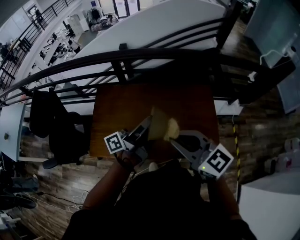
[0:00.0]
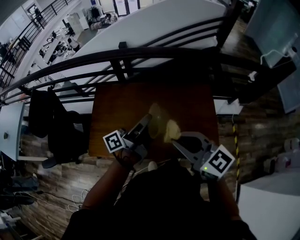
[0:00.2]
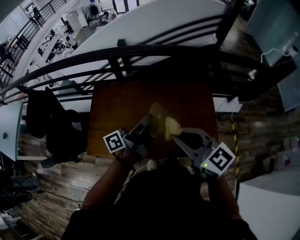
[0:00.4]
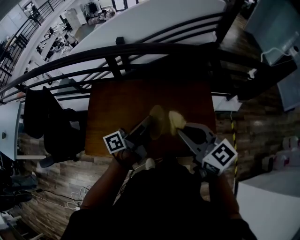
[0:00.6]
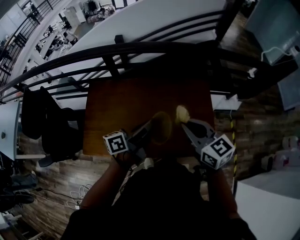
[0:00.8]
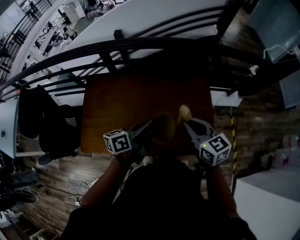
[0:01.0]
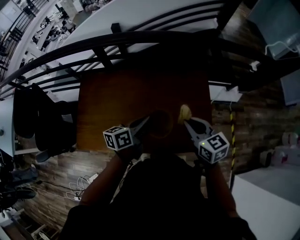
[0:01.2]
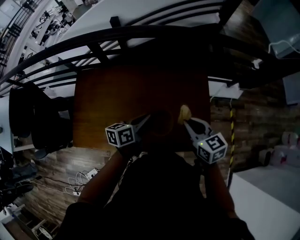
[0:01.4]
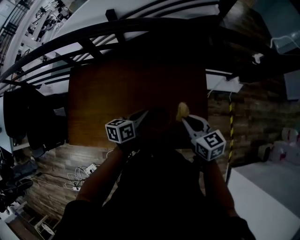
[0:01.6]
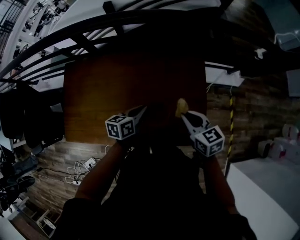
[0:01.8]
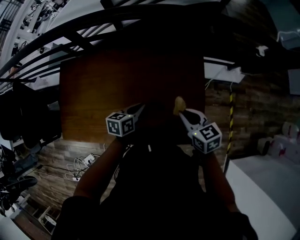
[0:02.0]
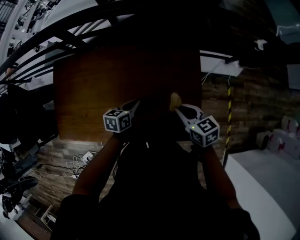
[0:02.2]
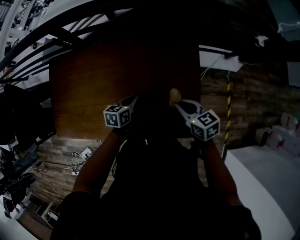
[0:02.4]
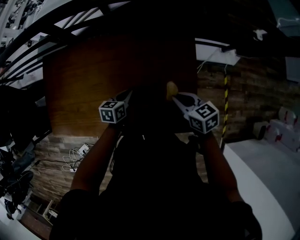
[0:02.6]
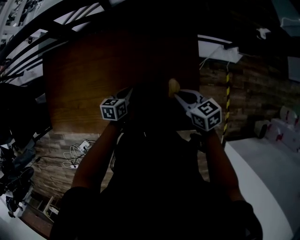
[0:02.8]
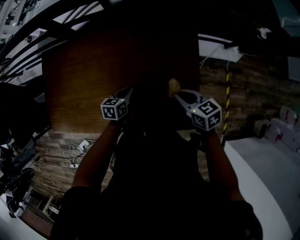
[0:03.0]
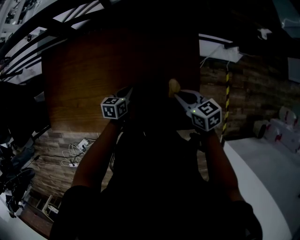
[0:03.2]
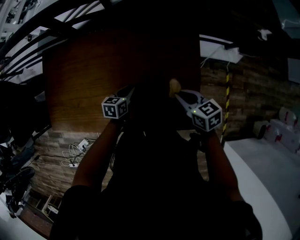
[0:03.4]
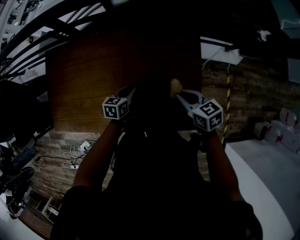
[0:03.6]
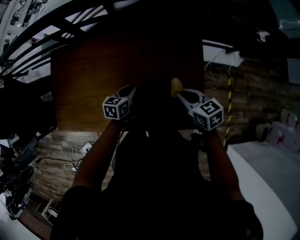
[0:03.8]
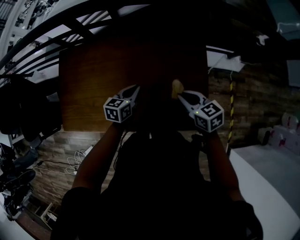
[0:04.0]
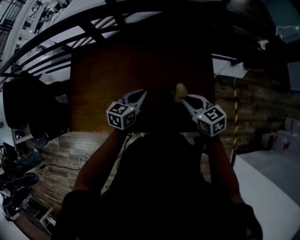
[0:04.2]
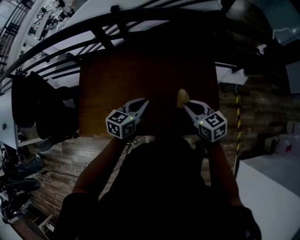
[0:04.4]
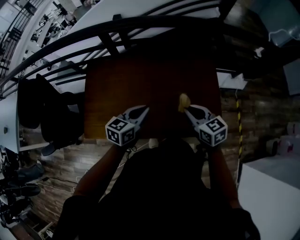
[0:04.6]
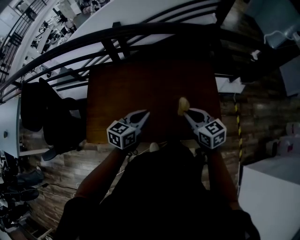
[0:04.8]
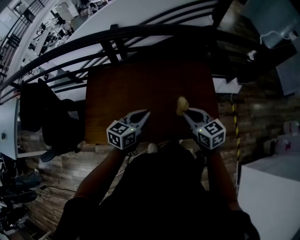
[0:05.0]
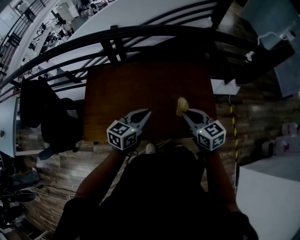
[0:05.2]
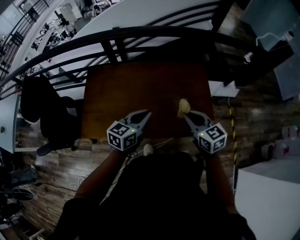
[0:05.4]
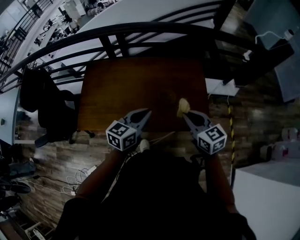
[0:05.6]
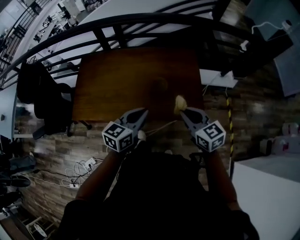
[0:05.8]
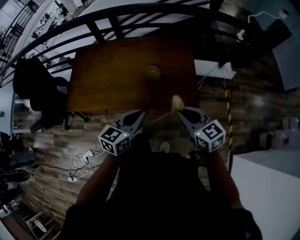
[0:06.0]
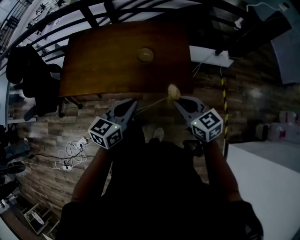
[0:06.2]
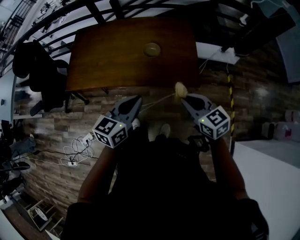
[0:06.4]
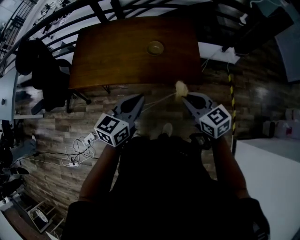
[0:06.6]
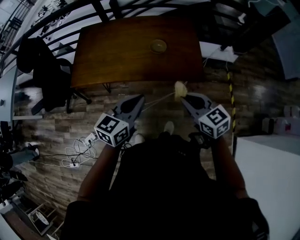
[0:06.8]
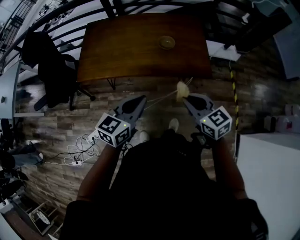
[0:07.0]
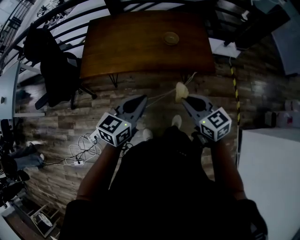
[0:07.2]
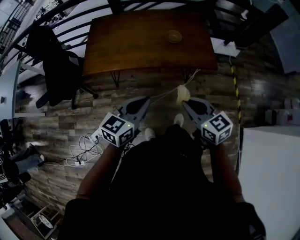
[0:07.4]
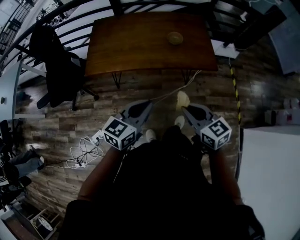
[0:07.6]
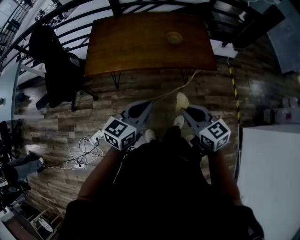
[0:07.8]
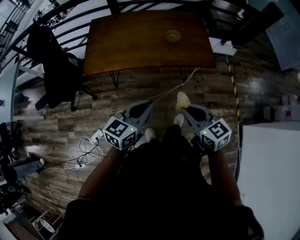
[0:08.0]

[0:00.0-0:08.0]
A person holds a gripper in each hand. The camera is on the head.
0:00.0 to 0:01.6: The right gripper moves to the right, downward and forward, approximately 35 cm, and swivels approximately 30 degrees, while the left gripper goes some 25 cm downward and to the right, and tips its fingers downward by roughly 50 degrees.
0:01.6 to 0:03.2: The right gripper is displaced downward and to the right by roughly 15 cm; the left gripper shifts about 20 cm downward.
0:03.2 to 0:04.8: The right gripper heads to the left, upward and backward, covering roughly 25 cm, and turns by roughly 20 degrees. Meanwhile the left gripper goes about 35 cm upward, to the left and backward, and turns by approximately 30 degrees.
0:04.8 to 0:06.4: Both grippers move backward and to the right, about 35 cm.
0:06.4 to 0:08.0: The grippers both shift to the left and backward by approximately 25 cm.

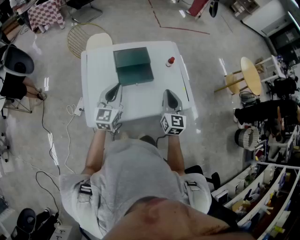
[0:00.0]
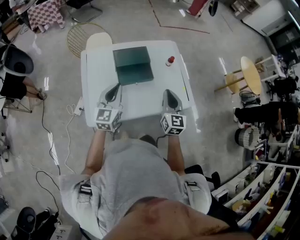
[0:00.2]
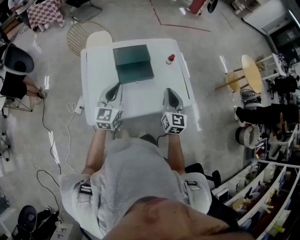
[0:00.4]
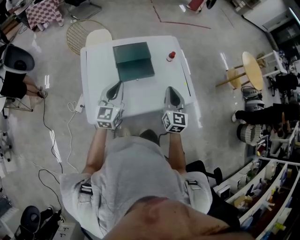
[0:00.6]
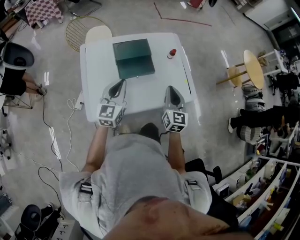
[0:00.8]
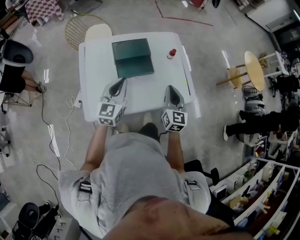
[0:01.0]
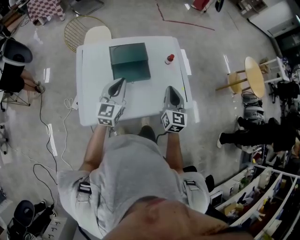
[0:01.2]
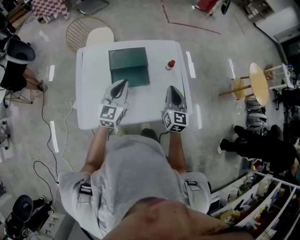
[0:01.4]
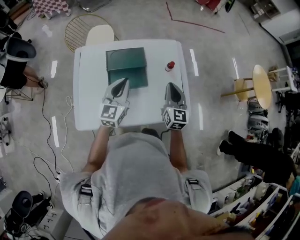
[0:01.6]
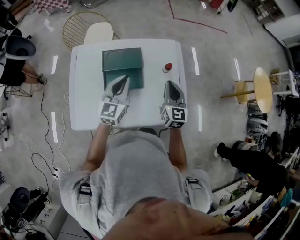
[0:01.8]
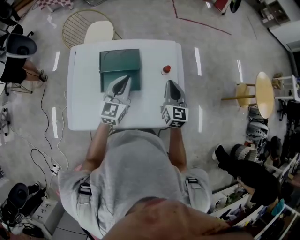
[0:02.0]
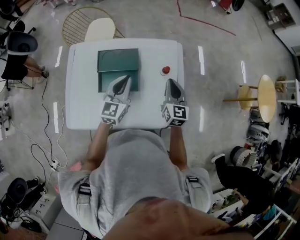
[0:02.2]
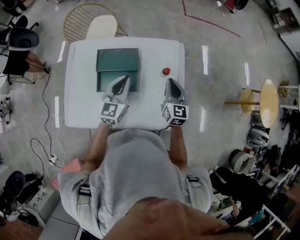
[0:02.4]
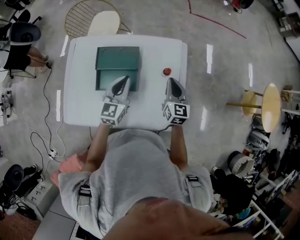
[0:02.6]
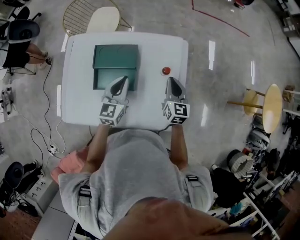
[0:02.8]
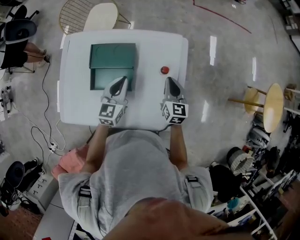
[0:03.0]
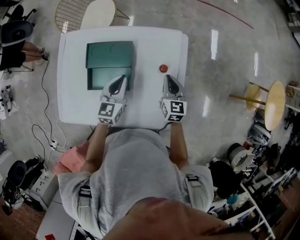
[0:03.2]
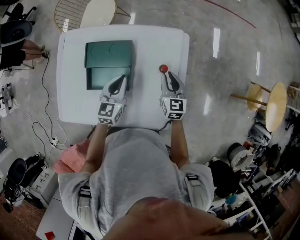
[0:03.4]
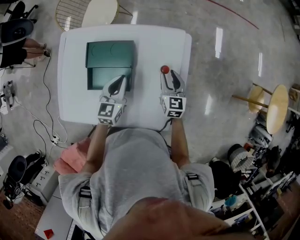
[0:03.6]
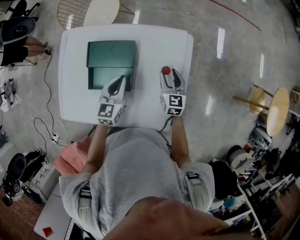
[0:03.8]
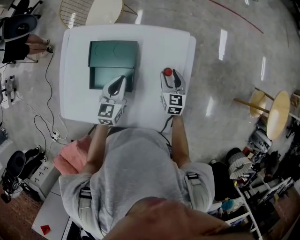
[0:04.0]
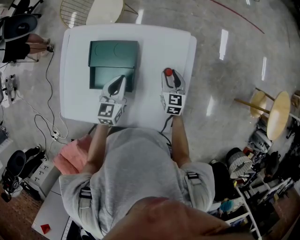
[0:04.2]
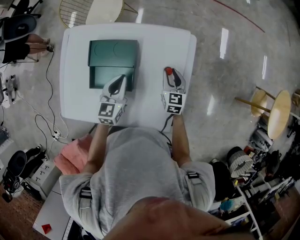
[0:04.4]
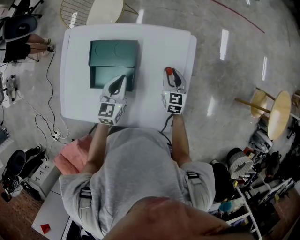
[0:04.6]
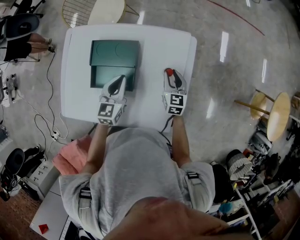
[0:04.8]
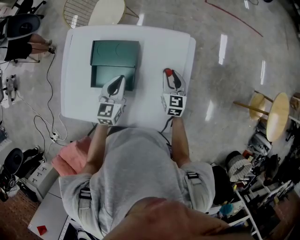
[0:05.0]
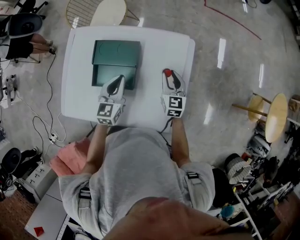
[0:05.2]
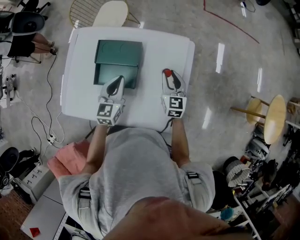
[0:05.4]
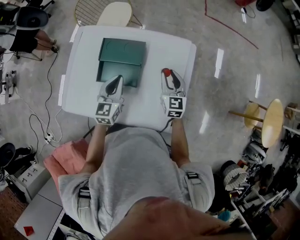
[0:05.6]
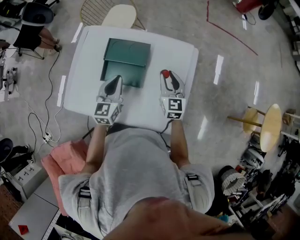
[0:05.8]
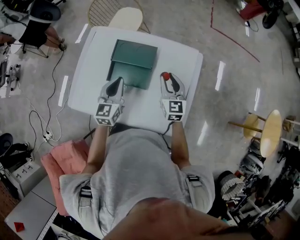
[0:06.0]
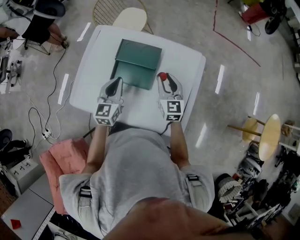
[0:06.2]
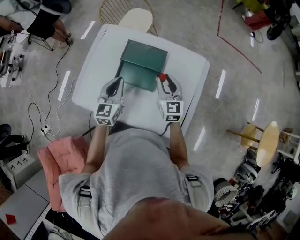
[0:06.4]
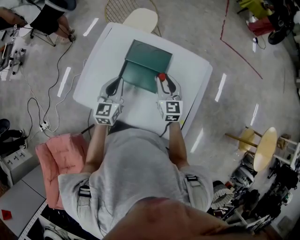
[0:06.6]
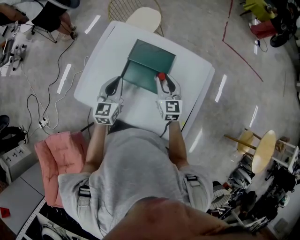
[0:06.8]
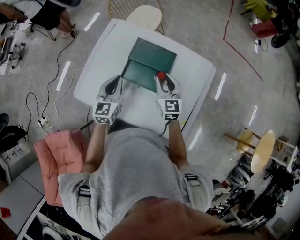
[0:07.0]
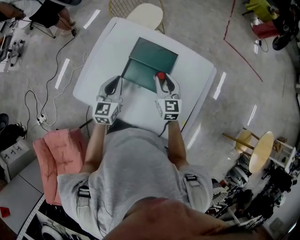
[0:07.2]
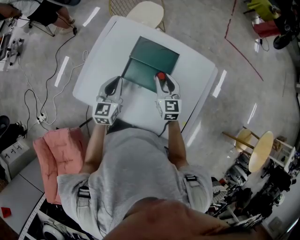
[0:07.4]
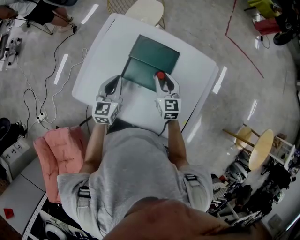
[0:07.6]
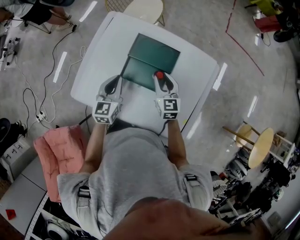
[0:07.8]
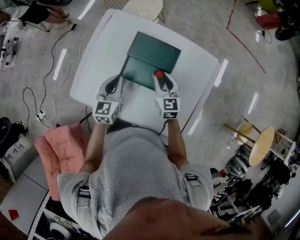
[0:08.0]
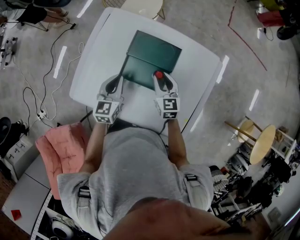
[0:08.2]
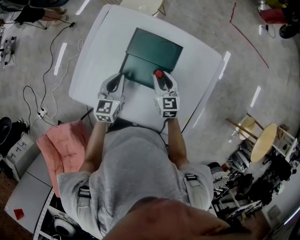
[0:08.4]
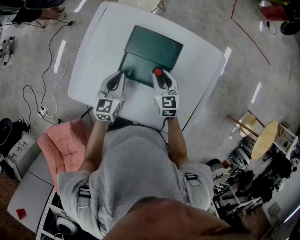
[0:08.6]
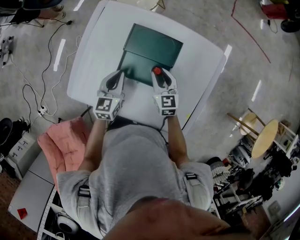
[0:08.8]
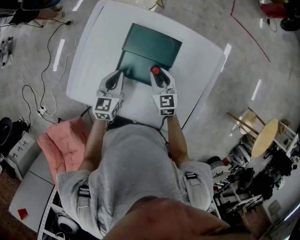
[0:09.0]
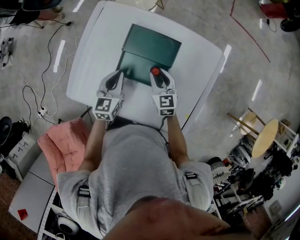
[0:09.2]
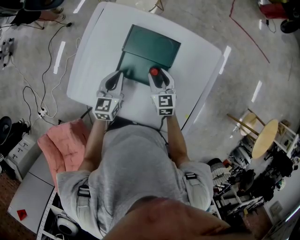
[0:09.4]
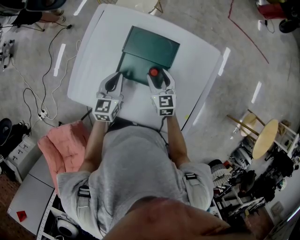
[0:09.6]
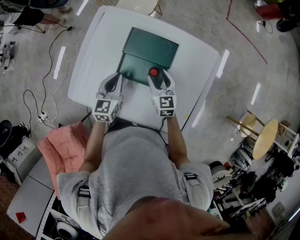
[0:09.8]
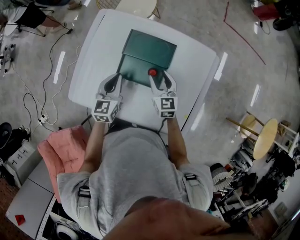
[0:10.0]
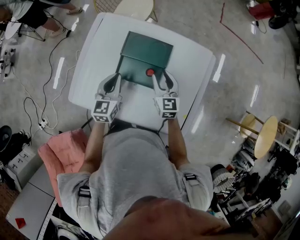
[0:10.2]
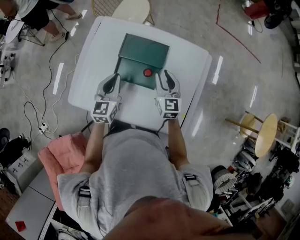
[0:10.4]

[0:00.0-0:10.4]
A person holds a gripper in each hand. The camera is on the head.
0:00.0 to 0:01.4: The two grippers go some 10 cm forward and to the right.
0:01.4 to 0:03.0: The left gripper heads forward, to the right and downward, covering approximately 25 cm. The right gripper heads forward, downward and to the right, covering approximately 25 cm, and rotates roughly 20 degrees.
0:03.0 to 0:04.4: The right gripper is displaced downward and forward by about 10 cm, and opens.
0:04.4 to 0:06.0: The left gripper shifts roughly 15 cm to the left, backward and upward. Meanwhile the right gripper moves upward, to the left and backward, approximately 20 cm.
0:06.0 to 0:07.4: Both grippers travel together to the left, some 10 cm.
0:07.4 to 0:09.0: The grippers both shift downward by some 10 cm.
0:09.0 to 0:10.4: Both grippers move upward, approximately 10 cm. The right gripper opens, then closes again.

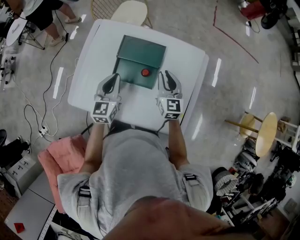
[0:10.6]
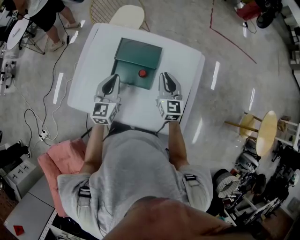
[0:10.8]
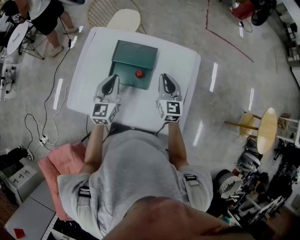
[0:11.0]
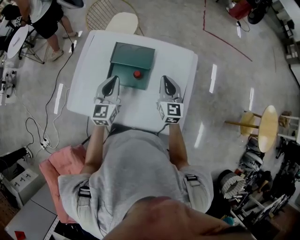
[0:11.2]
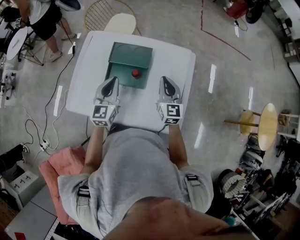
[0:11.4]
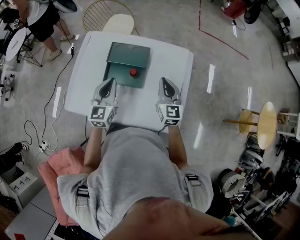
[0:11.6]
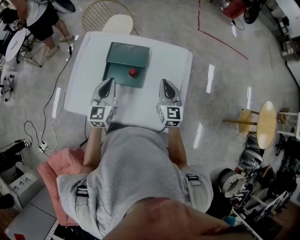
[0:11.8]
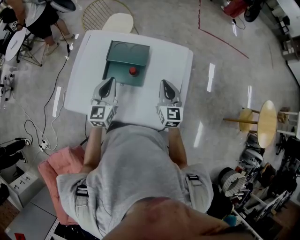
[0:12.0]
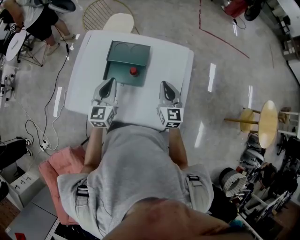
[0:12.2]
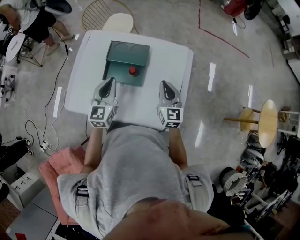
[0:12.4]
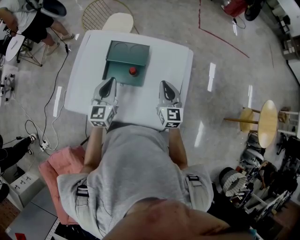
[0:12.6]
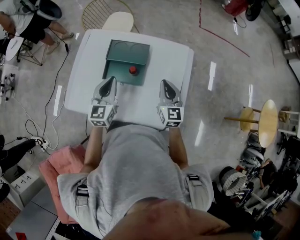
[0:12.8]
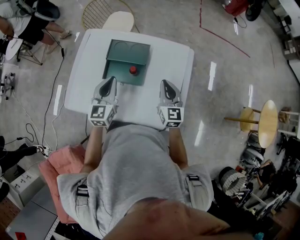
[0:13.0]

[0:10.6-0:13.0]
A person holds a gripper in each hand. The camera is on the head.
0:10.6 to 0:11.8: The left gripper shifts about 10 cm backward and to the right; the right gripper travels backward and to the right by roughly 10 cm.
0:11.8 to 0:13.0: The grippers make only small movements.

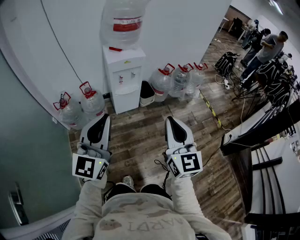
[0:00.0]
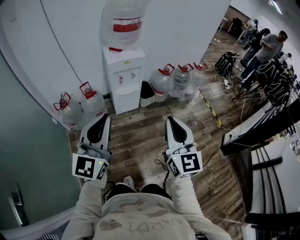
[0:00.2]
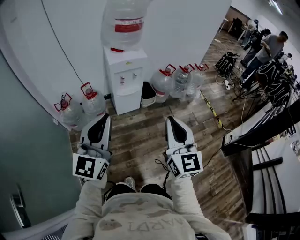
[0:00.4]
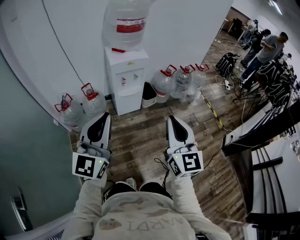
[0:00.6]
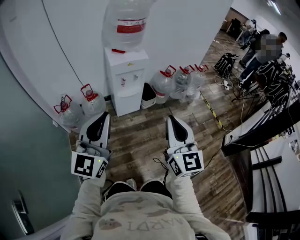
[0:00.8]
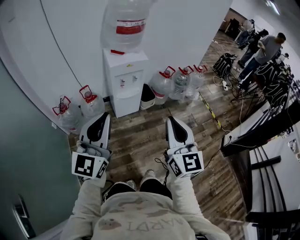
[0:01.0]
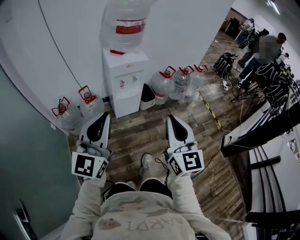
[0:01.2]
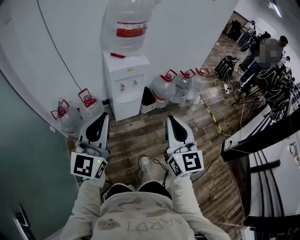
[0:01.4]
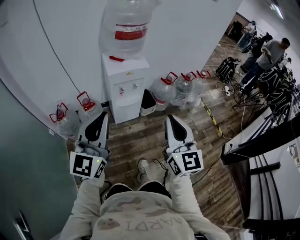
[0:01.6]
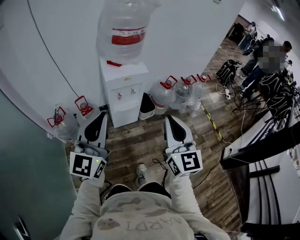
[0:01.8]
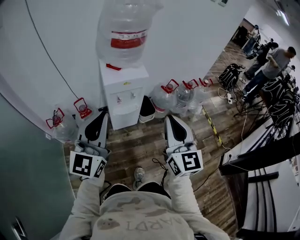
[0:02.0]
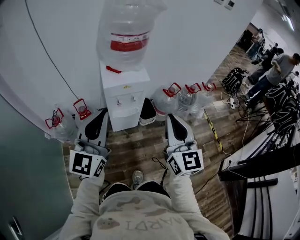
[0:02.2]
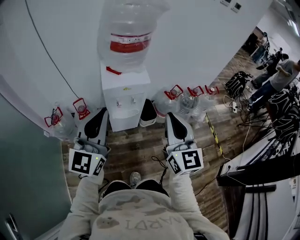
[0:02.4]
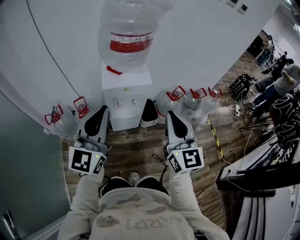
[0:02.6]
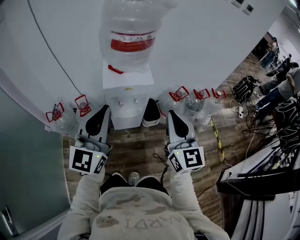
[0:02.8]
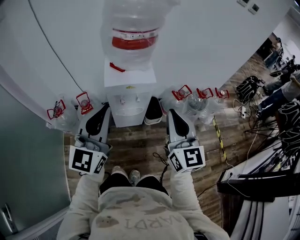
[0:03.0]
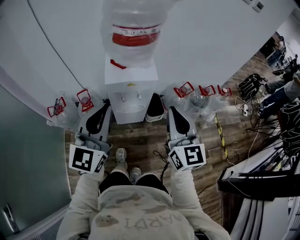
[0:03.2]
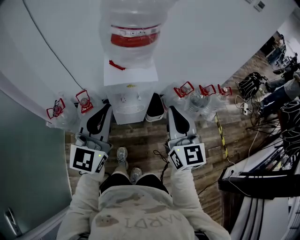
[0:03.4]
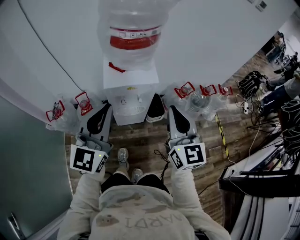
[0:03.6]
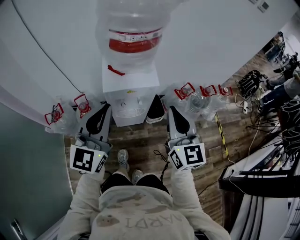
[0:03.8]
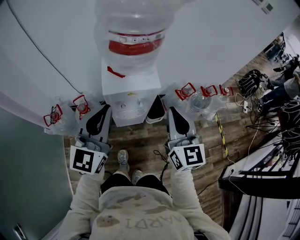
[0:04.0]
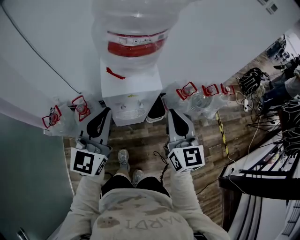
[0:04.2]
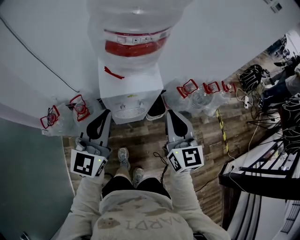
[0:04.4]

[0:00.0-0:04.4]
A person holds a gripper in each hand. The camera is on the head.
0:00.0 to 0:01.4: The left gripper goes some 10 cm forward and to the left; the right gripper goes some 10 cm forward.
0:01.4 to 0:03.0: The grippers both shift forward by approximately 25 cm.
0:03.0 to 0:04.4: Both grippers travel together forward and downward, some 15 cm.
